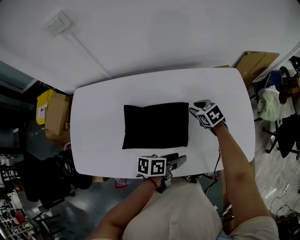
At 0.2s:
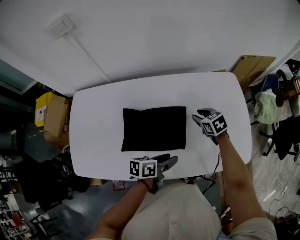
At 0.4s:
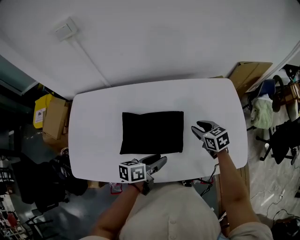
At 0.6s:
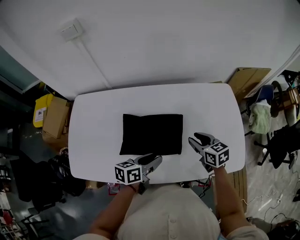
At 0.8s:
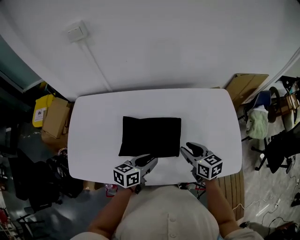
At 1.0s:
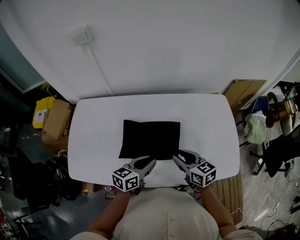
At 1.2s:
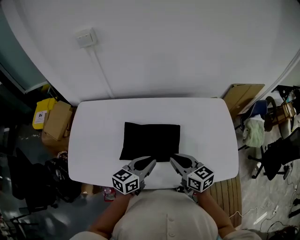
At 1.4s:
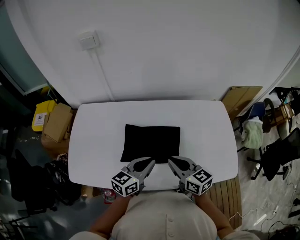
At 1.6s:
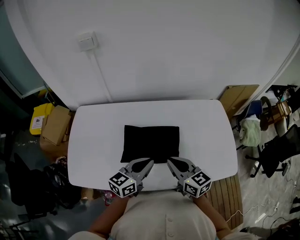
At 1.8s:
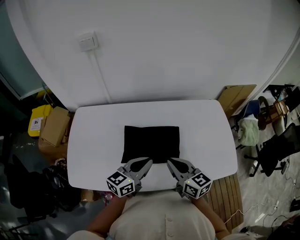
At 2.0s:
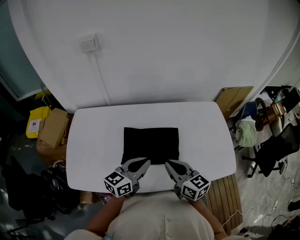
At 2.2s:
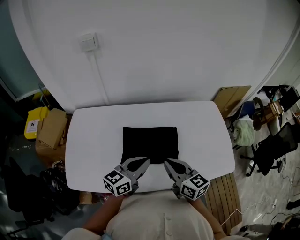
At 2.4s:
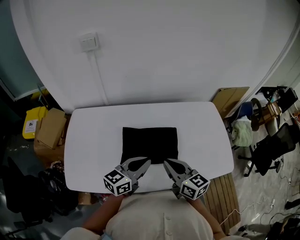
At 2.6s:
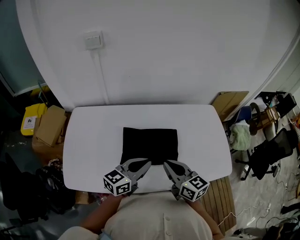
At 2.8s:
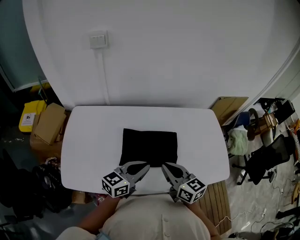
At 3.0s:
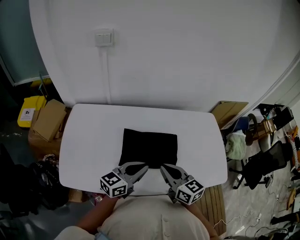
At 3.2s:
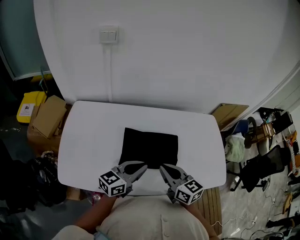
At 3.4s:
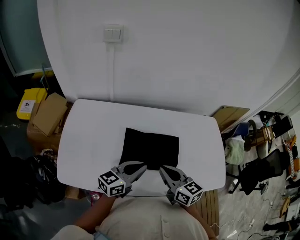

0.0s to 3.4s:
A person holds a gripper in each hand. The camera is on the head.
0.0s to 1.6s: The left gripper goes approximately 20 cm upward and to the left, twists some 40 degrees clockwise, seen from behind, and closes its fingers, while the right gripper is displaced backward, upward and to the left by about 30 cm, angles its fingers upward, by roughly 40 degrees, and closes its fingers.
1.6s to 3.4s: The grippers both shift to the left by some 5 cm.

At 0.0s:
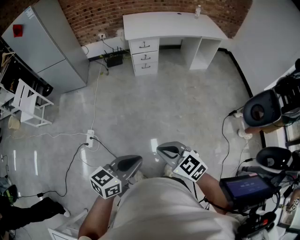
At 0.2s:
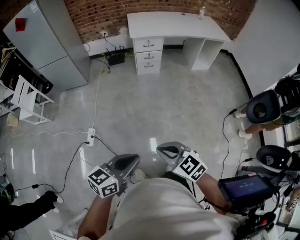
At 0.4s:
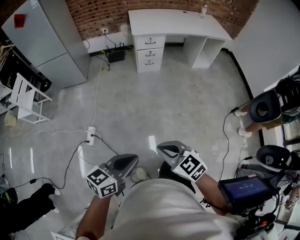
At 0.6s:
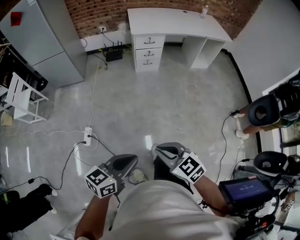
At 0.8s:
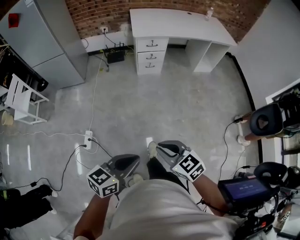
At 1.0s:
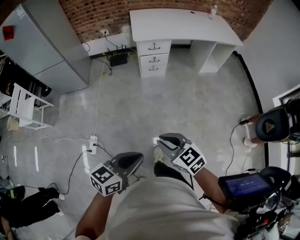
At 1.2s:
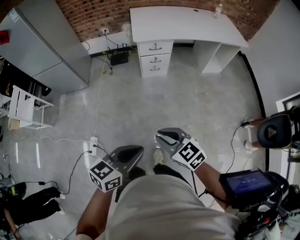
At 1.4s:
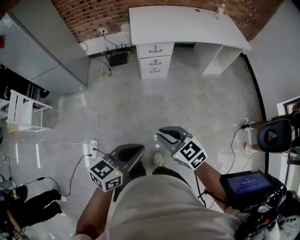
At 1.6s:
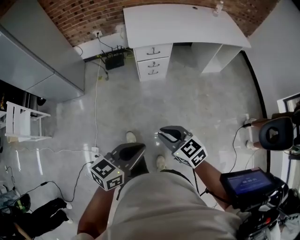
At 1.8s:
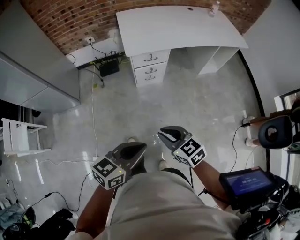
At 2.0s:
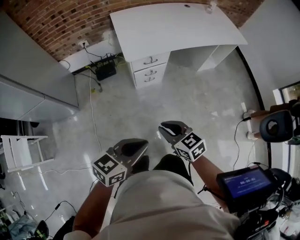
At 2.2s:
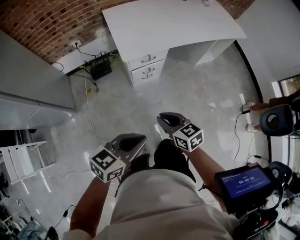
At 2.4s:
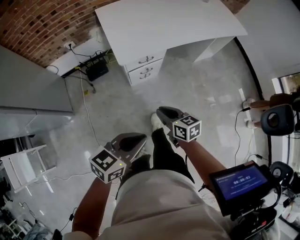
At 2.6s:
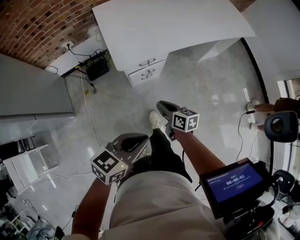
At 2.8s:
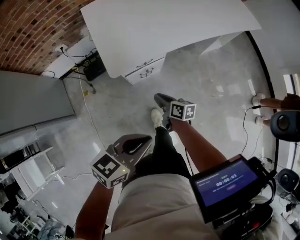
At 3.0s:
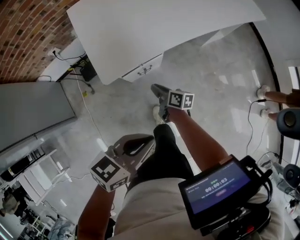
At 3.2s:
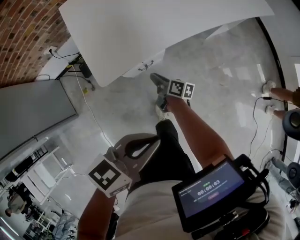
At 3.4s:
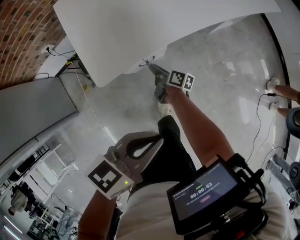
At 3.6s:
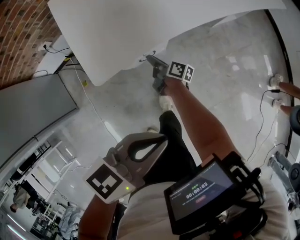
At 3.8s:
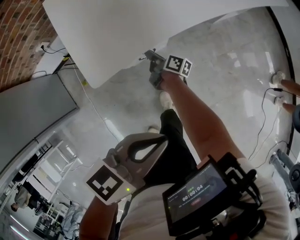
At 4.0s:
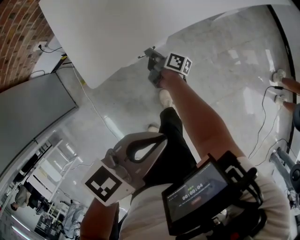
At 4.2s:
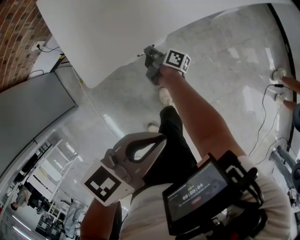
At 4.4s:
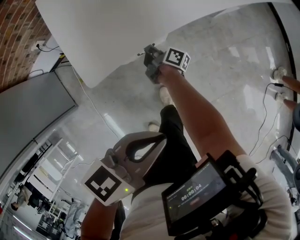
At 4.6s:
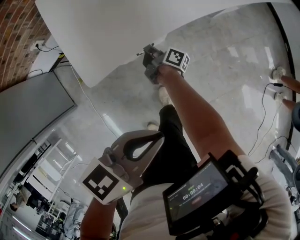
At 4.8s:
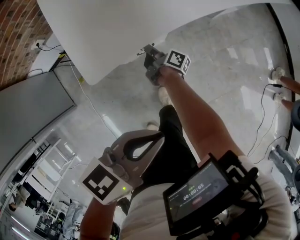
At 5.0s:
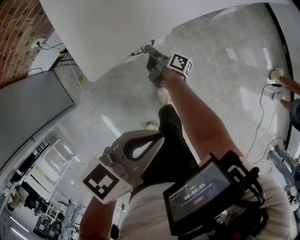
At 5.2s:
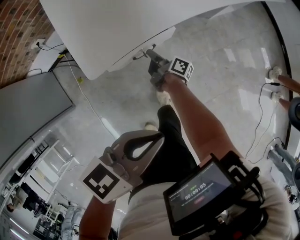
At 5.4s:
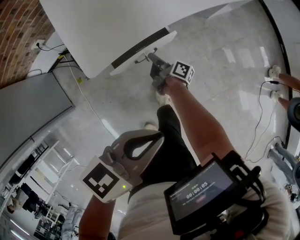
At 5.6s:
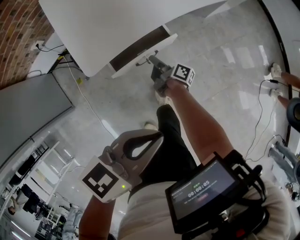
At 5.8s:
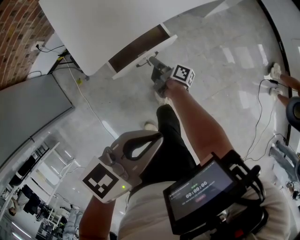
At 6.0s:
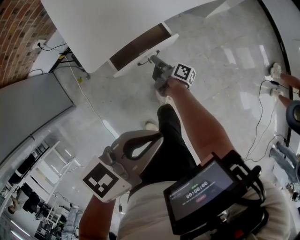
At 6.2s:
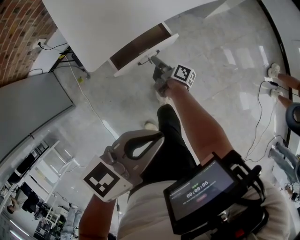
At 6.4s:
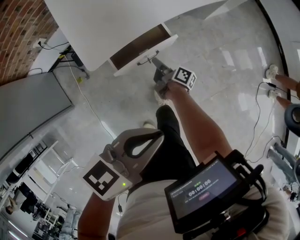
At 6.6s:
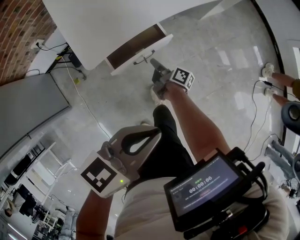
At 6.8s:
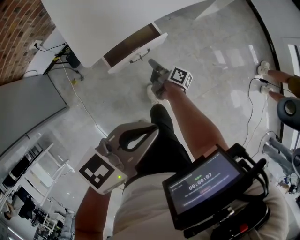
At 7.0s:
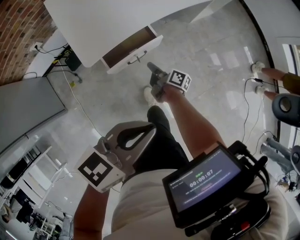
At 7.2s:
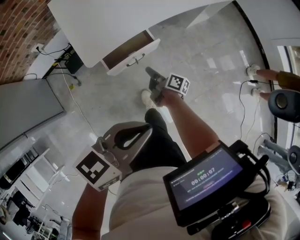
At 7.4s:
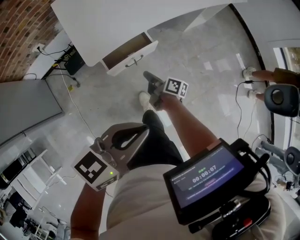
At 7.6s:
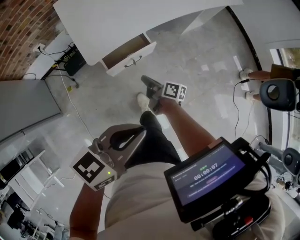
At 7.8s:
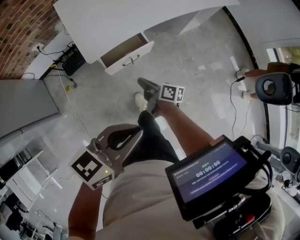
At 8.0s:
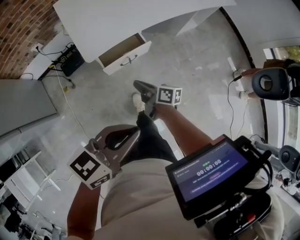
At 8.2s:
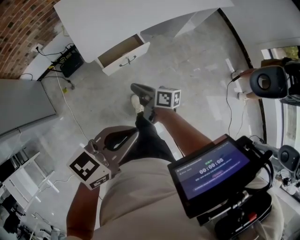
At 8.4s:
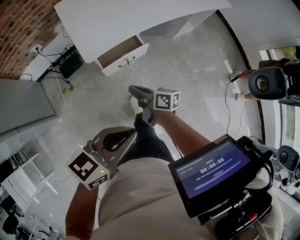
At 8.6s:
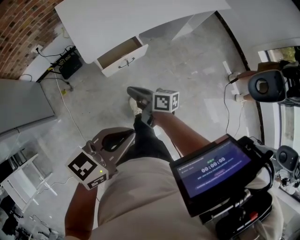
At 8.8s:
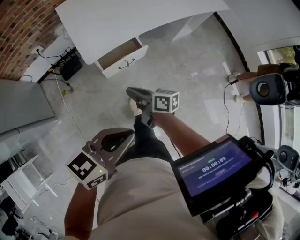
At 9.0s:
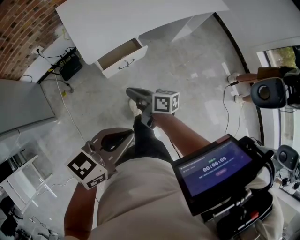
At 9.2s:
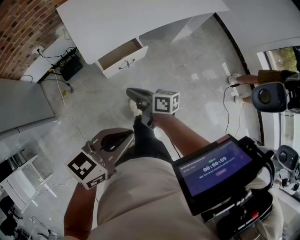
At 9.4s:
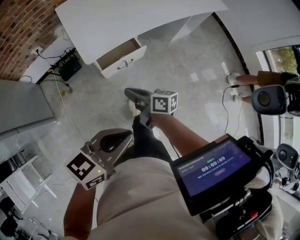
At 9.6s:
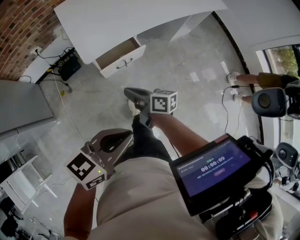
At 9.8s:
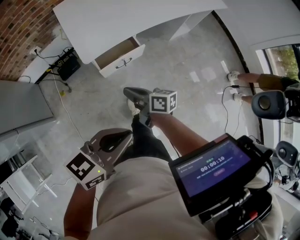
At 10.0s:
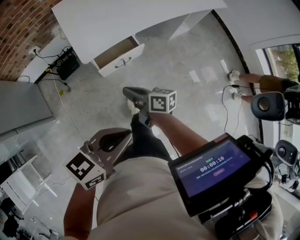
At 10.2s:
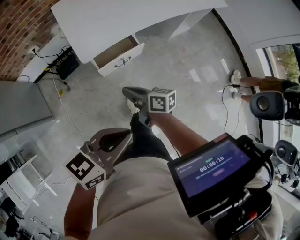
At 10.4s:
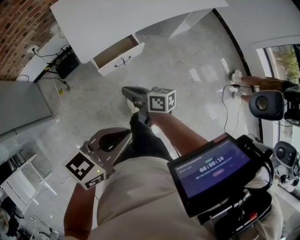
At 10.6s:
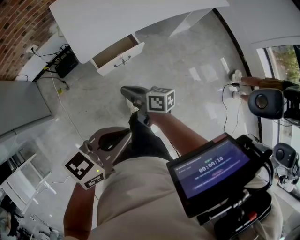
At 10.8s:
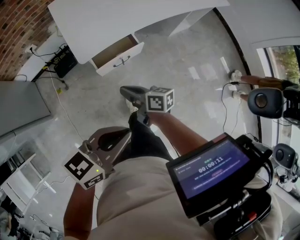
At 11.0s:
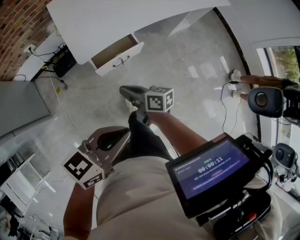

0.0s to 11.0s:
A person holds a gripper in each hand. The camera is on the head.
0.0s to 1.6s: Both grippers are carried forward, about 40 cm.
1.6s to 3.2s: Both grippers are carried some 50 cm. The right gripper rotates around the line of its fingers by some 70 degrees, clockwise from behind. Meanwhile the left gripper swivels about 20 degrees.
3.2s to 4.8s: The right gripper moves forward and downward, approximately 10 cm, and turns by some 30 degrees; the left gripper travels downward by about 5 cm.
4.8s to 6.2s: The left gripper heads backward, covering some 5 cm. Meanwhile the right gripper is displaced backward and to the right by some 10 cm.
6.2s to 7.8s: The right gripper is displaced upward and backward by about 25 cm, and swivels some 20 degrees, while the left gripper is displaced upward and backward by about 15 cm.
7.8s to 9.4s: The right gripper shifts about 10 cm upward and backward.
9.4s to 11.0s: The grippers stay close to where they were, moving slightly.

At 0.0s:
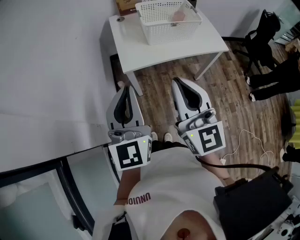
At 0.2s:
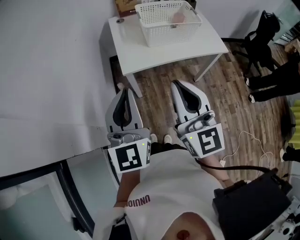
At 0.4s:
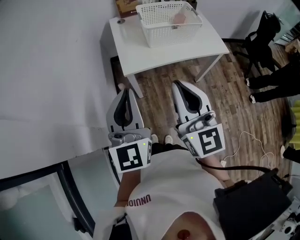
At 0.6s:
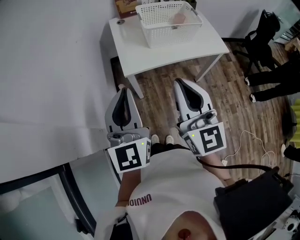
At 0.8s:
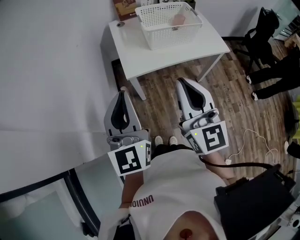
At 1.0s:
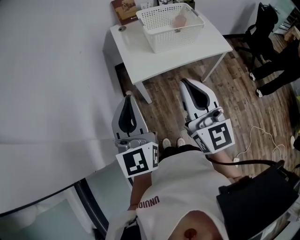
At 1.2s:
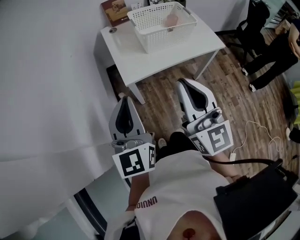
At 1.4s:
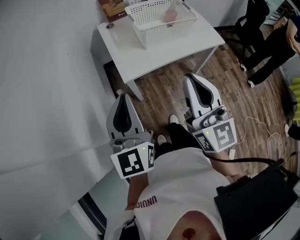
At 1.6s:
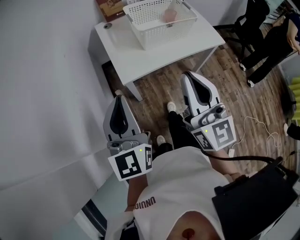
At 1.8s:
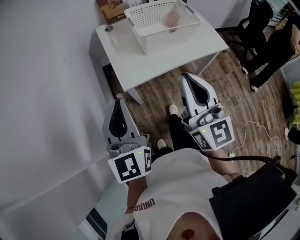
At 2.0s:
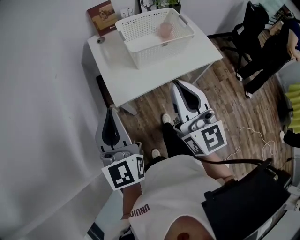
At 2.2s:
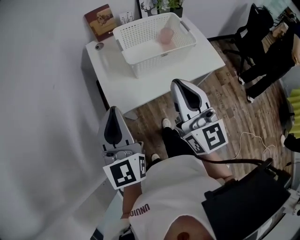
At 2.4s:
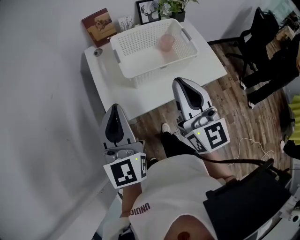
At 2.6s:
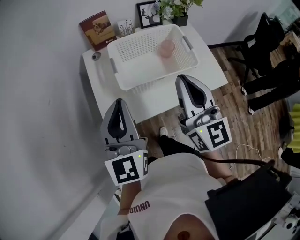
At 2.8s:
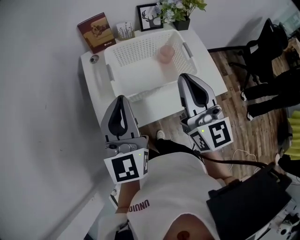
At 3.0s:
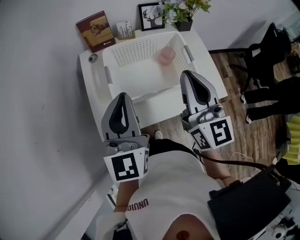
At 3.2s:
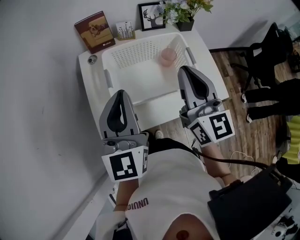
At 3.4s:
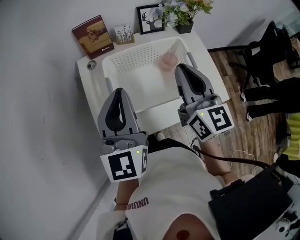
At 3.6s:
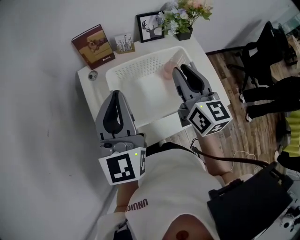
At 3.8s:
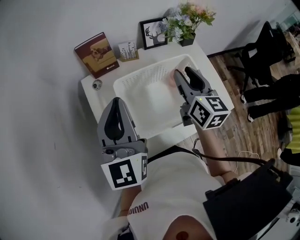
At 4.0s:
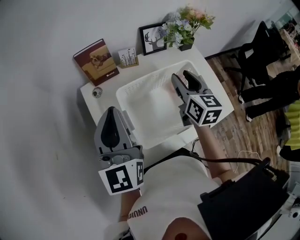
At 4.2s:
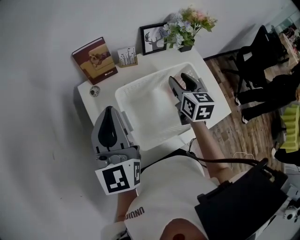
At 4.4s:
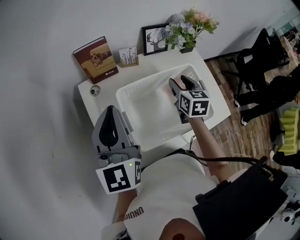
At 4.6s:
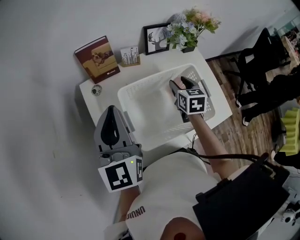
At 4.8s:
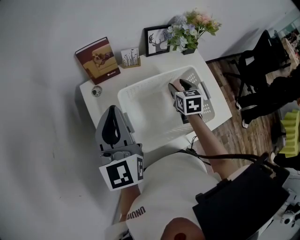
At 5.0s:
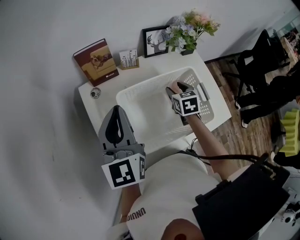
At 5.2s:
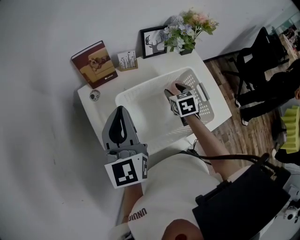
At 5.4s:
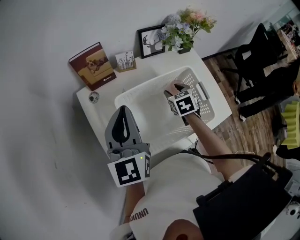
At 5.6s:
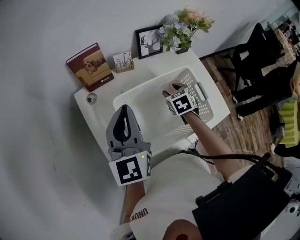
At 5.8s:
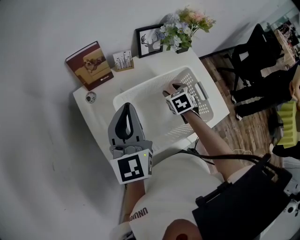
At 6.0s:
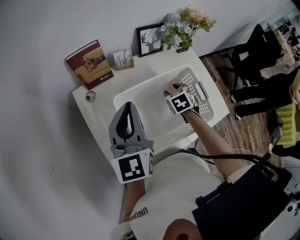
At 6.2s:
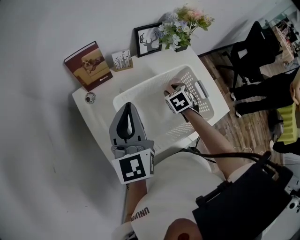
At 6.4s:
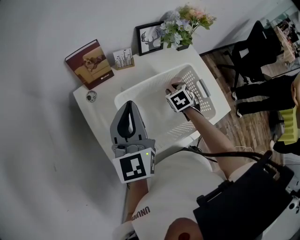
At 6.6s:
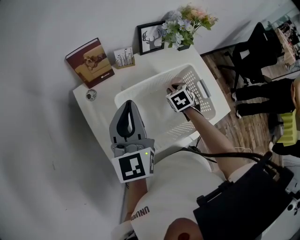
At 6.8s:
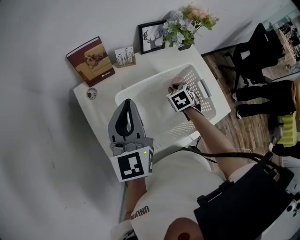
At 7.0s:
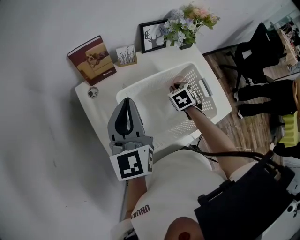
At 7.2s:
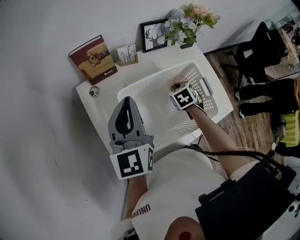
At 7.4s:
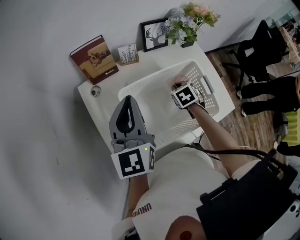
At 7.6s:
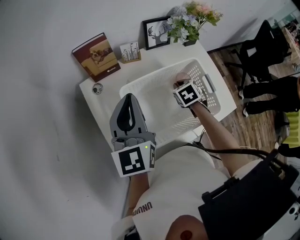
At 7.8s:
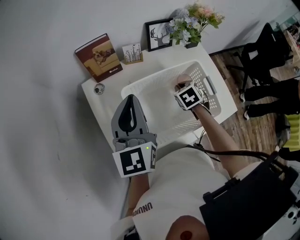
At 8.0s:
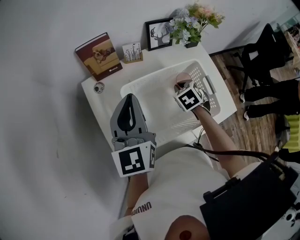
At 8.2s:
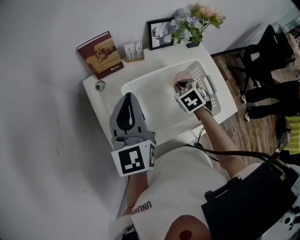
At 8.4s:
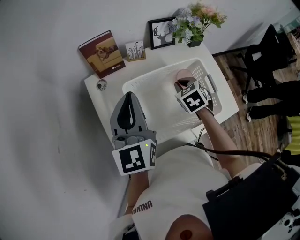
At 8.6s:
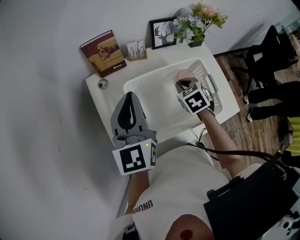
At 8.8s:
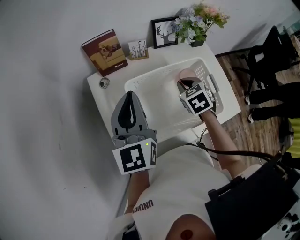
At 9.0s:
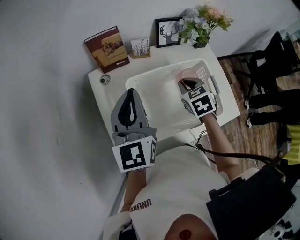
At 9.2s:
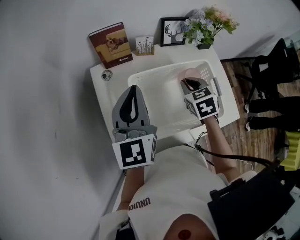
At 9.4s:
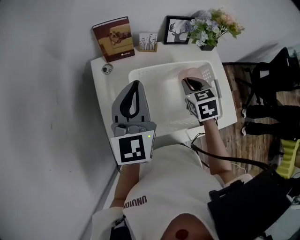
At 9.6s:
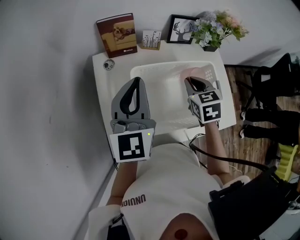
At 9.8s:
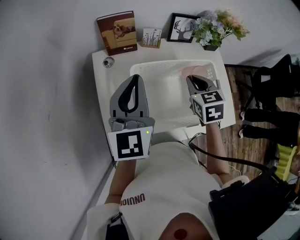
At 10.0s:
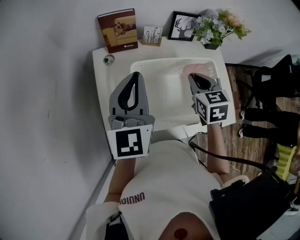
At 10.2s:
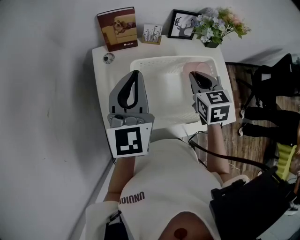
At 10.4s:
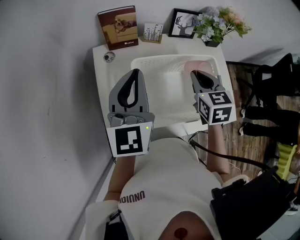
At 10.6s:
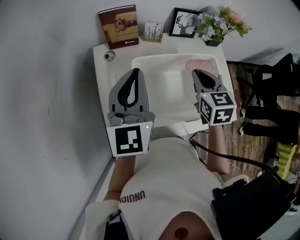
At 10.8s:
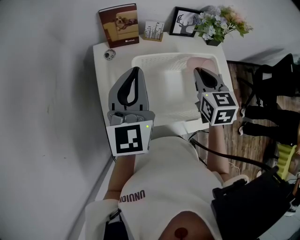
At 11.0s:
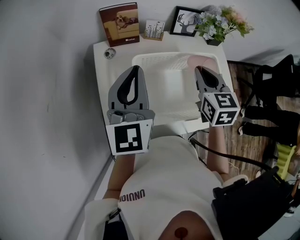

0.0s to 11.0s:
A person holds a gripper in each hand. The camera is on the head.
0.0s to 1.6s: The left gripper goes approximately 10 cm forward and to the left; the right gripper travels forward by approximately 5 cm.
1.6s to 3.2s: The grippers both shift forward and to the right by approximately 40 cm.
3.2s to 4.8s: The left gripper travels forward and to the left by about 15 cm. The right gripper travels downward and forward by roughly 30 cm, tilts its fingers roughly 40 degrees downward, and opens.
4.8s to 6.2s: The left gripper ends up approximately 5 cm from where it was; the right gripper goes about 5 cm downward, and swivels some 30 degrees.
6.2s to 7.8s: The right gripper closes.
7.8s to 9.4s: The right gripper shifts about 10 cm upward.
9.4s to 11.0s: The right gripper shifts roughly 5 cm upward.
